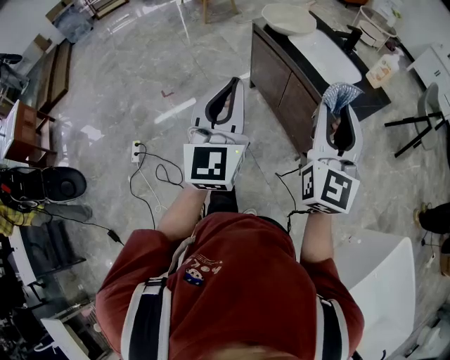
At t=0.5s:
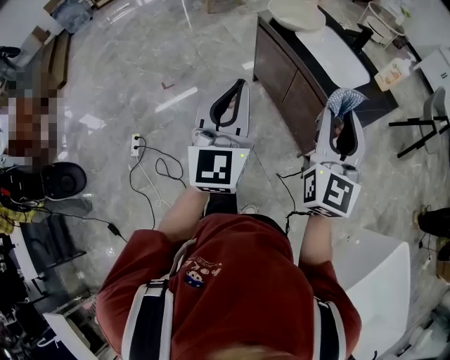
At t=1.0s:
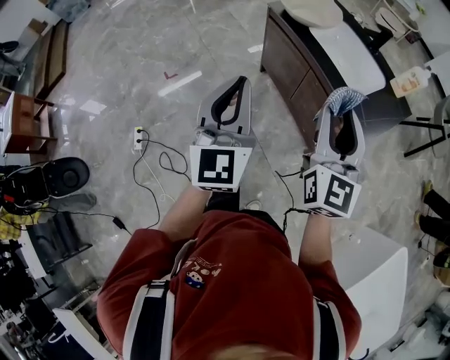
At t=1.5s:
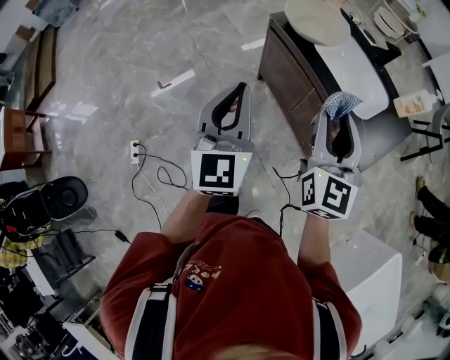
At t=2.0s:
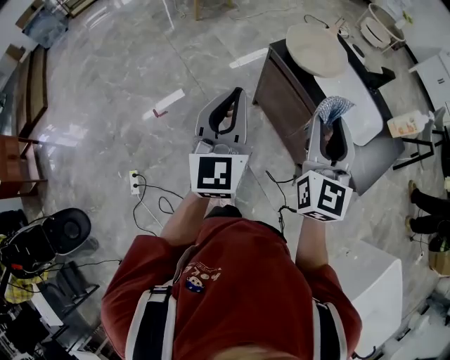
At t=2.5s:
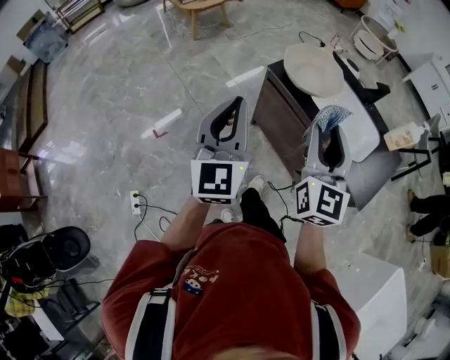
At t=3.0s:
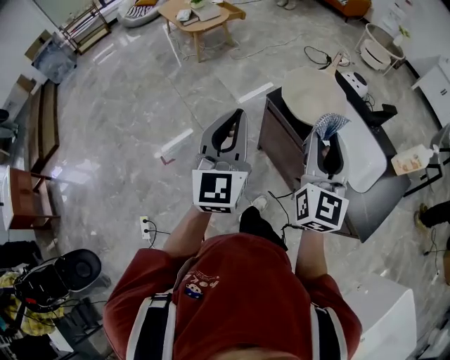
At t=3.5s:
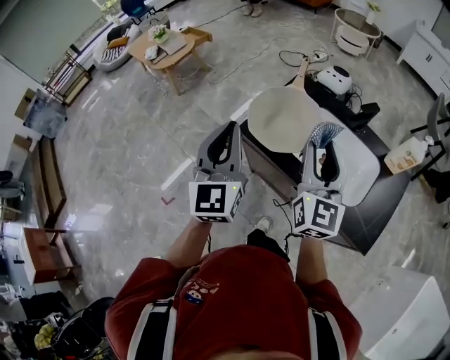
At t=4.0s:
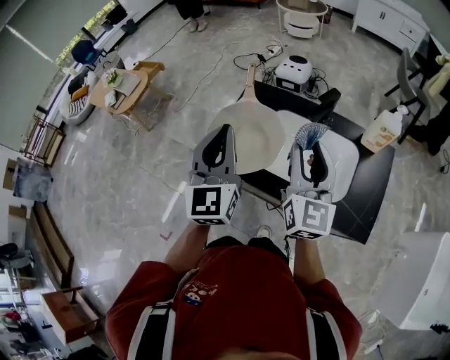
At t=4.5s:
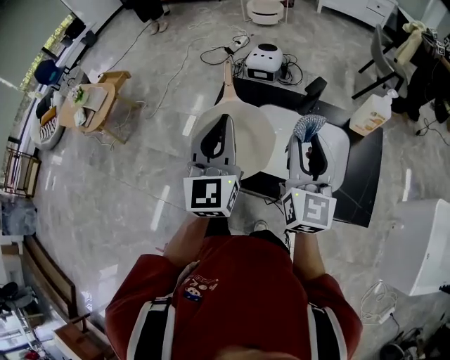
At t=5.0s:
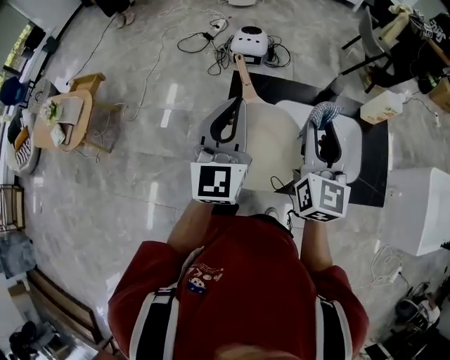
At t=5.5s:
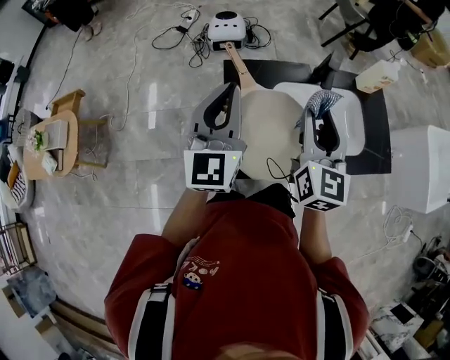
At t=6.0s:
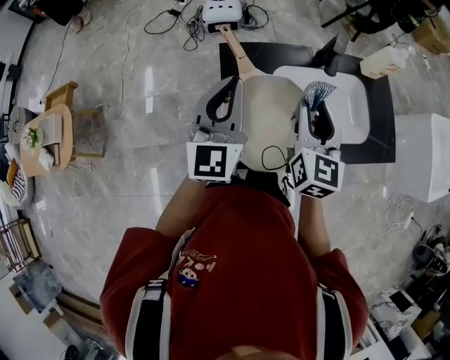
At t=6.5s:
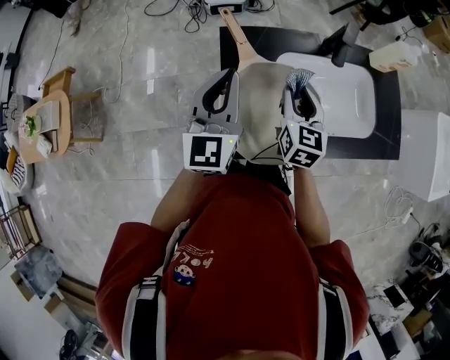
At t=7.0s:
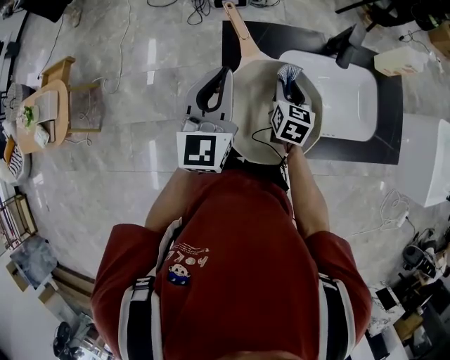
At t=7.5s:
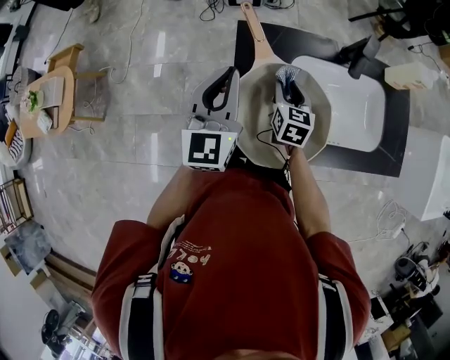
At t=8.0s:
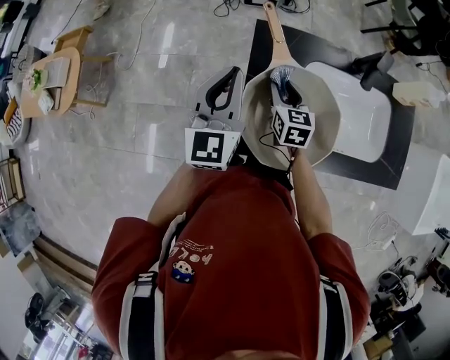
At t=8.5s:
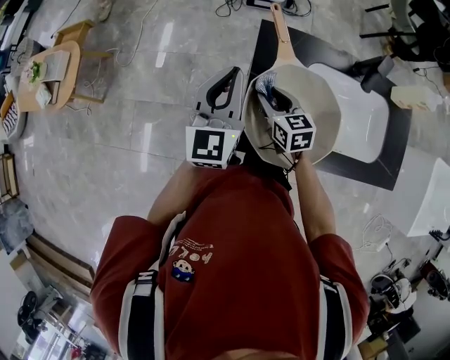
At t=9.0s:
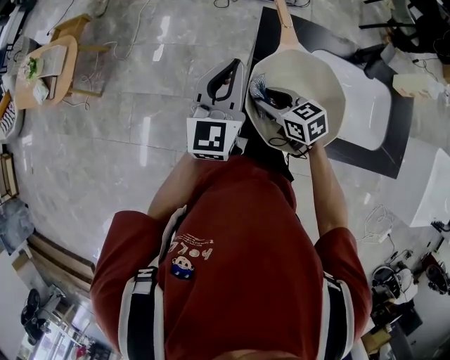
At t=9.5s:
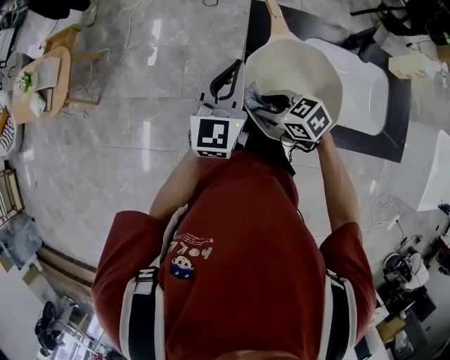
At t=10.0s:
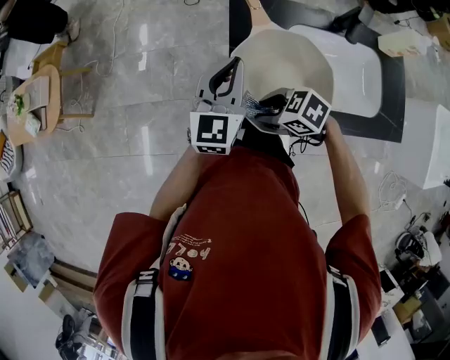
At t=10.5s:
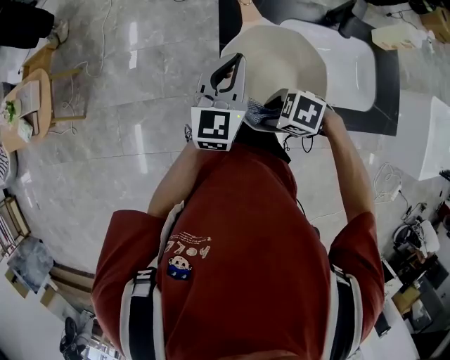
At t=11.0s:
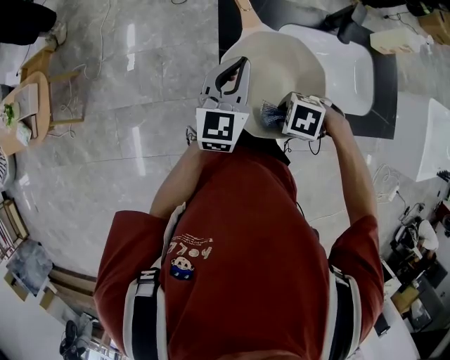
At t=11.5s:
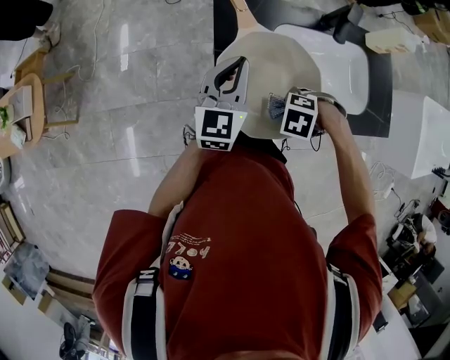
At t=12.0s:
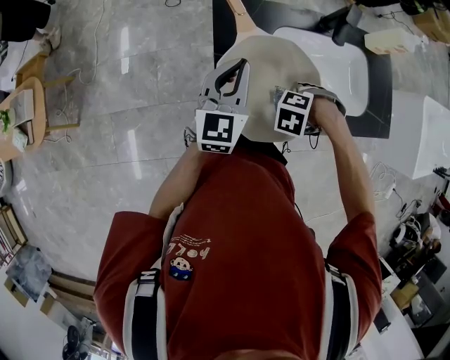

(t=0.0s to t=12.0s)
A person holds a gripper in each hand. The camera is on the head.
t=0.0s - t=2.0s: Both grippers move forward and to the left, some 35 cm.
t=2.0s - t=4.0s: The right gripper moves about 30 cm, and rotates roughly 30 degrees; the left gripper changes place by about 40 cm, and turns by roughly 30 degrees.
t=4.0s - t=6.0s: The right gripper moves roughly 15 cm, and changes its angle by about 40 degrees. The left gripper shifts by about 20 cm, and swivels roughly 40 degrees.
t=6.0s - t=8.0s: The left gripper shifts approximately 10 cm to the left and downward, while the right gripper is displaced downward and to the left by about 25 cm, and changes its angle by some 30 degrees.
t=8.0s - t=10.0s: The left gripper shifts by about 5 cm. Meanwhile the right gripper changes place by approximately 20 cm, and swivels some 60 degrees.
t=10.0s - t=12.0s: The left gripper ends up about 5 cm from where it was; the right gripper ends up approximately 15 cm from where it was, and points its fingers approximately 30 degrees further downward.

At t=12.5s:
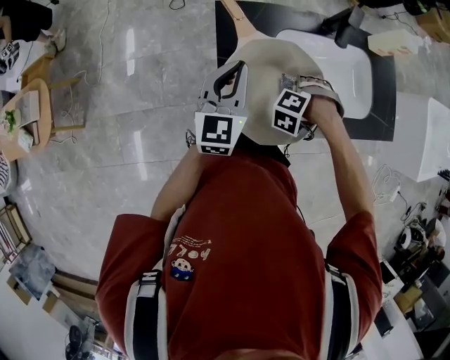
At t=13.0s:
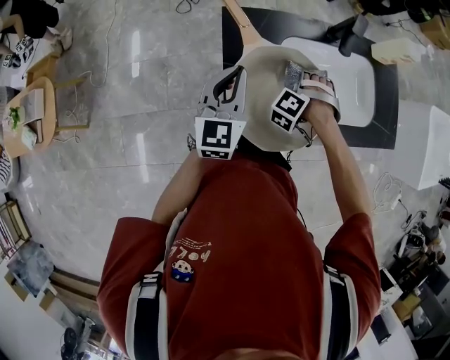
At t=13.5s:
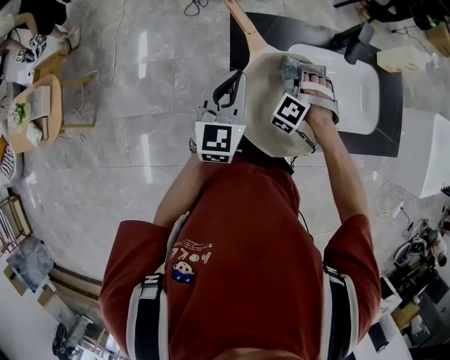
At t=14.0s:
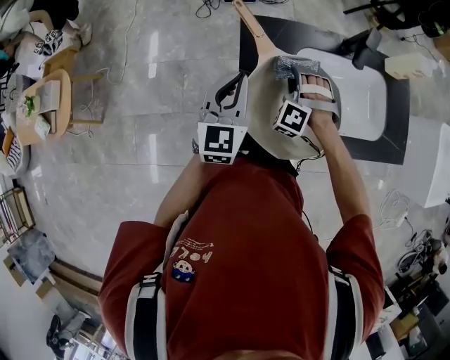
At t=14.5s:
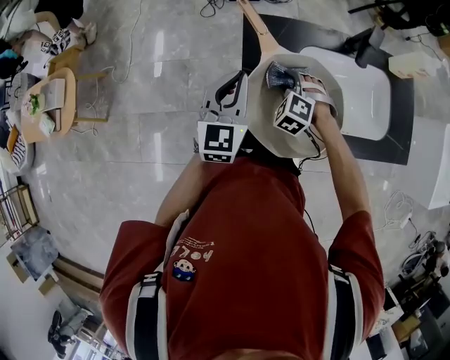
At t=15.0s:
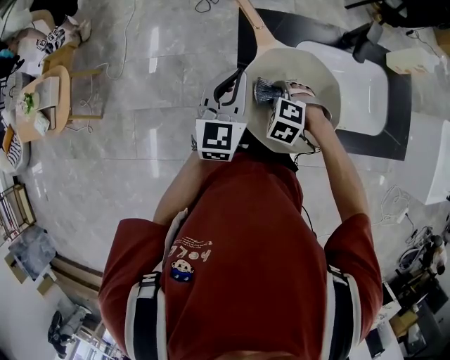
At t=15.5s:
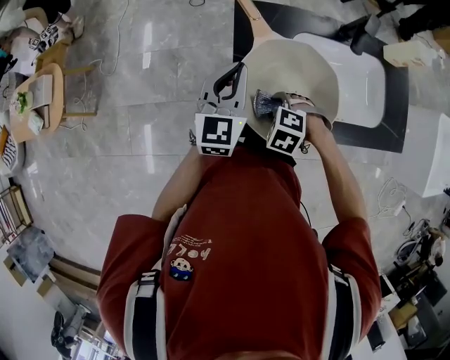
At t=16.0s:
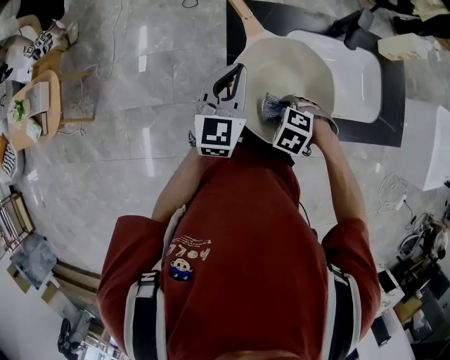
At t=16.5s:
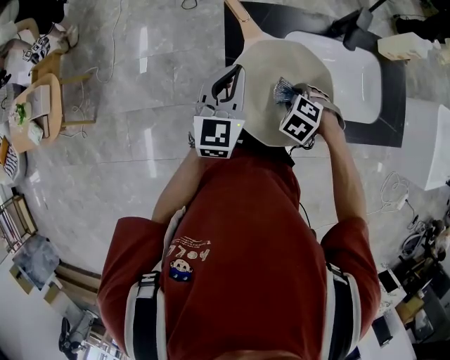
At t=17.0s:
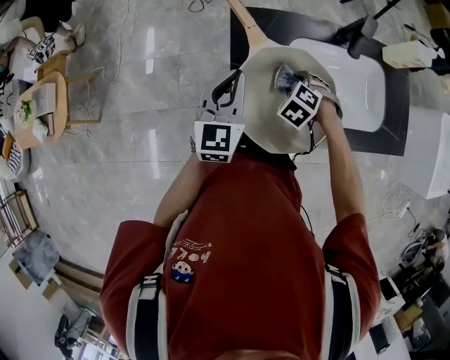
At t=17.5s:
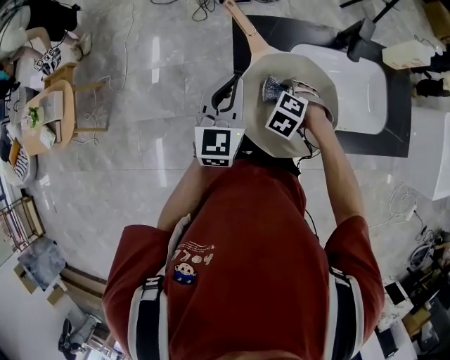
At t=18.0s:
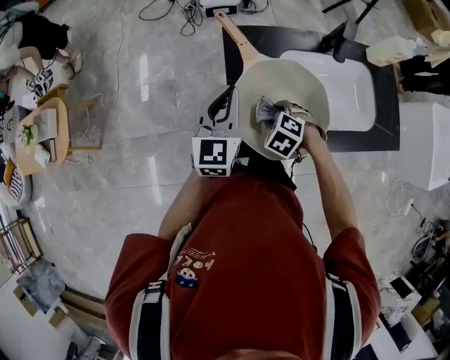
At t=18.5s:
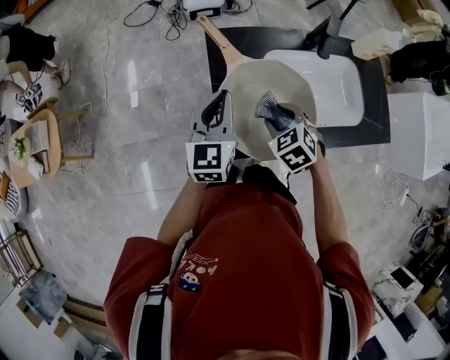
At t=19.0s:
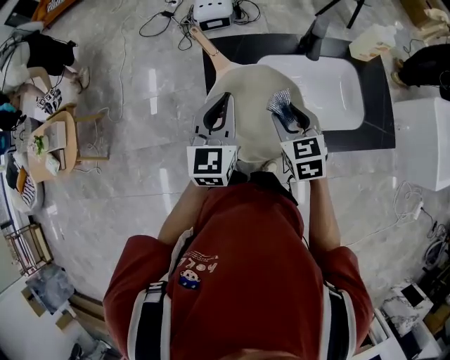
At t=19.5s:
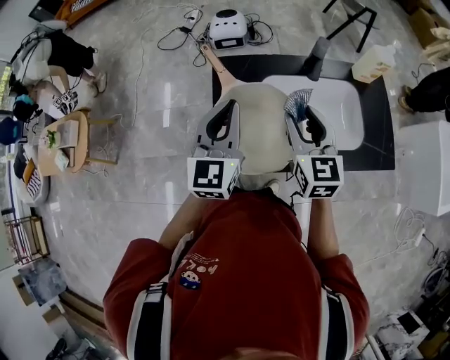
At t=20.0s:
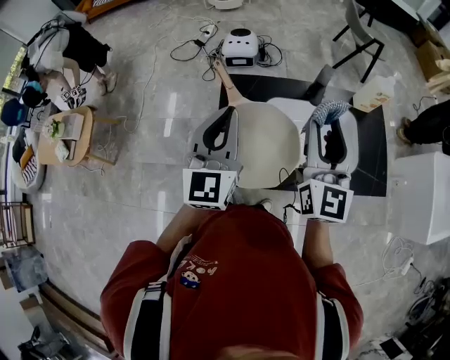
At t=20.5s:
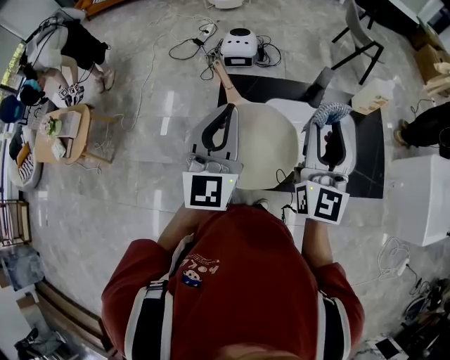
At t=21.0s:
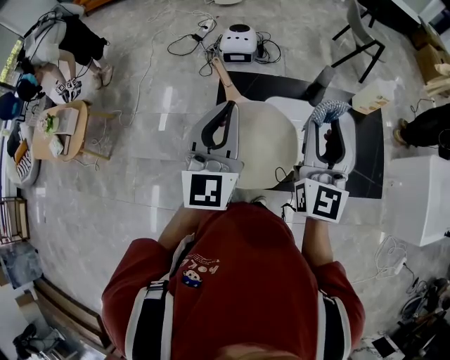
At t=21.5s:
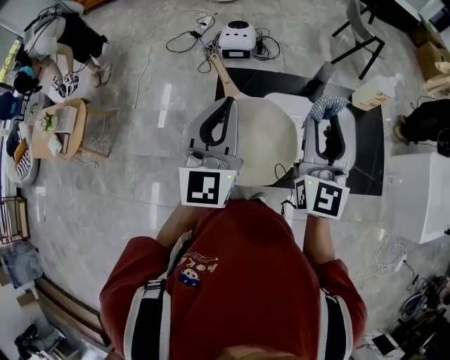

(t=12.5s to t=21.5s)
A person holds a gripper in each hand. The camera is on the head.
t=12.5s - t=14.5s: The right gripper ends up about 15 cm from where it was, and swivels about 40 degrees.
t=17.0s - t=19.5s: The right gripper heads upward, covering some 25 cm, and tips its fingers upward by approximately 60 degrees. The left gripper heads upward, covering some 15 cm.
t=19.5s - t=21.5s: The left gripper goes roughly 5 cm upward. Meanwhile the right gripper travels upward by roughly 10 cm, and turns by approximately 20 degrees.

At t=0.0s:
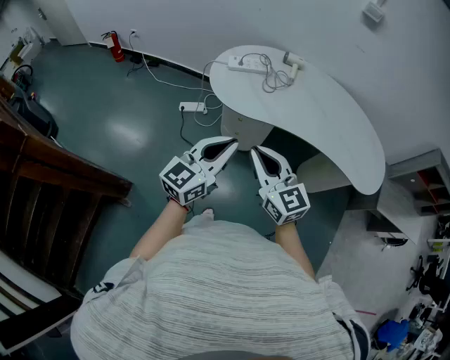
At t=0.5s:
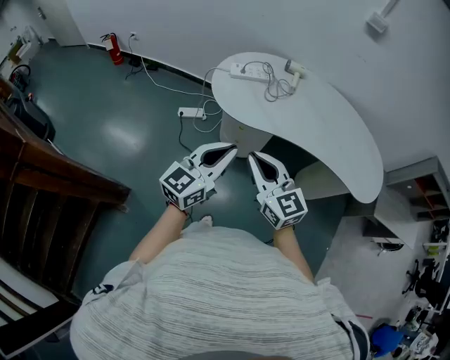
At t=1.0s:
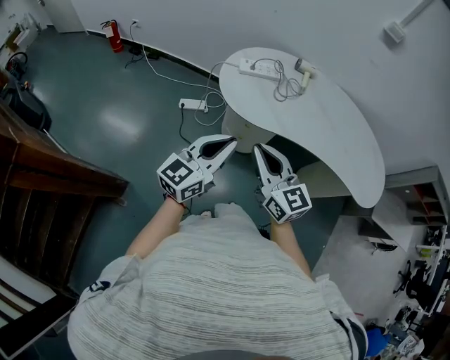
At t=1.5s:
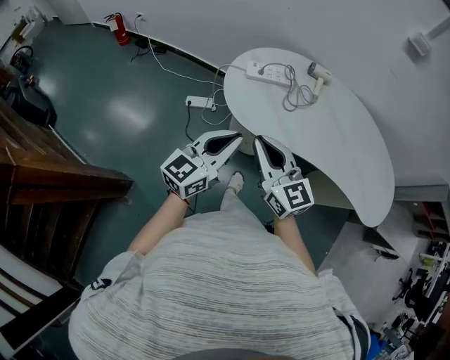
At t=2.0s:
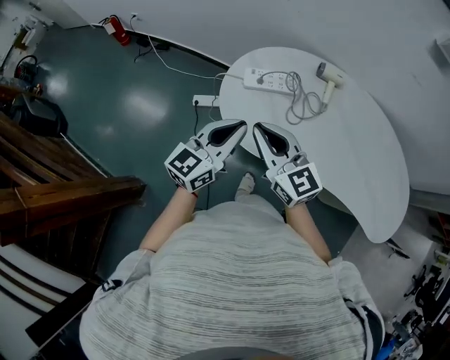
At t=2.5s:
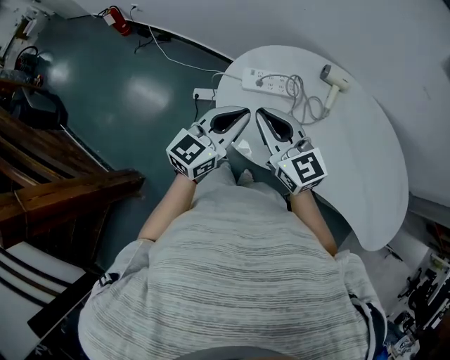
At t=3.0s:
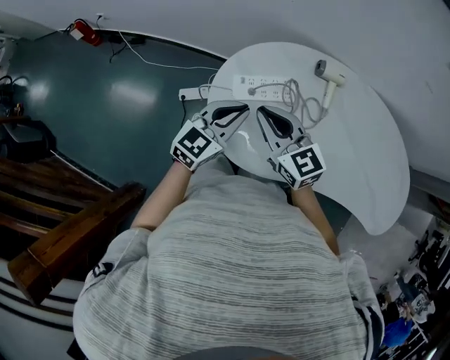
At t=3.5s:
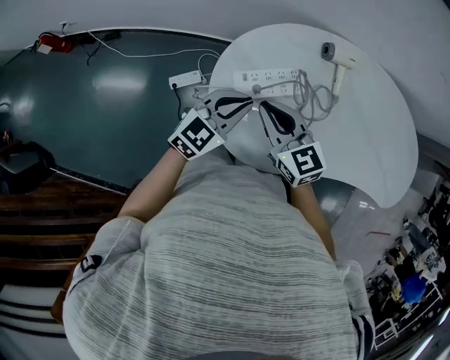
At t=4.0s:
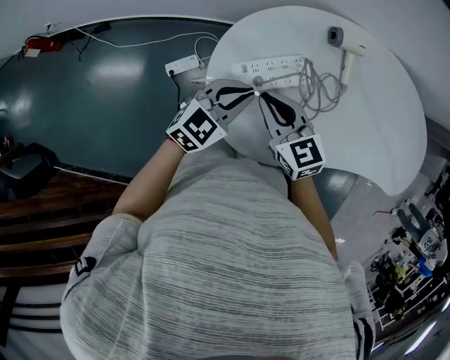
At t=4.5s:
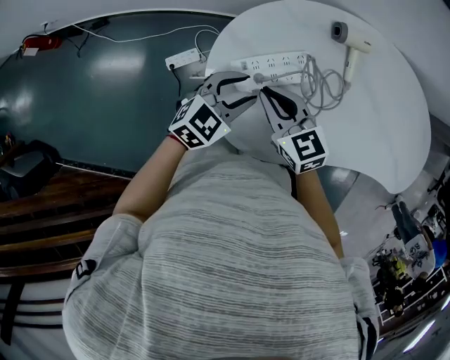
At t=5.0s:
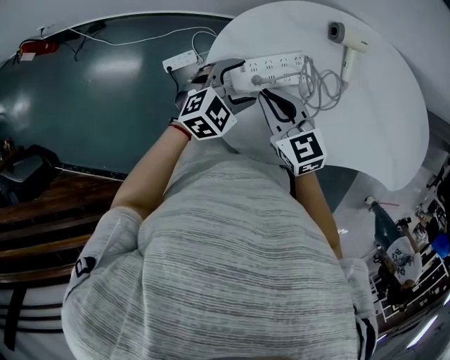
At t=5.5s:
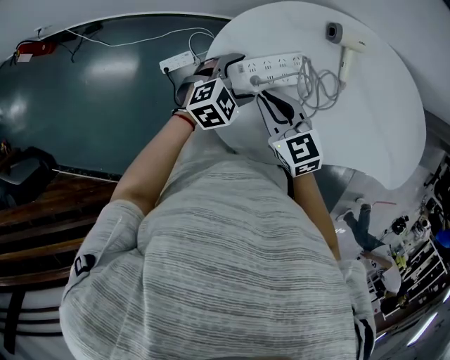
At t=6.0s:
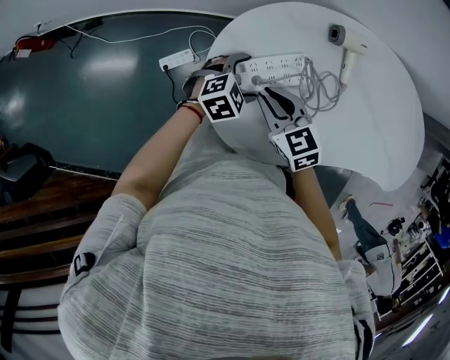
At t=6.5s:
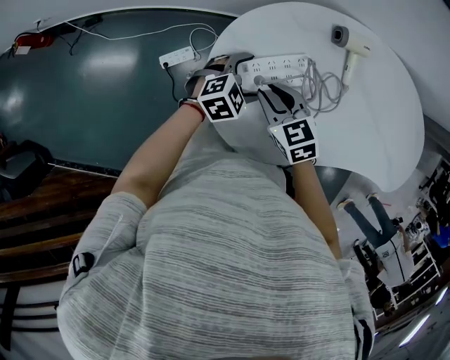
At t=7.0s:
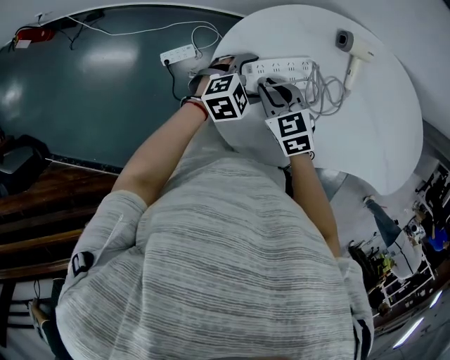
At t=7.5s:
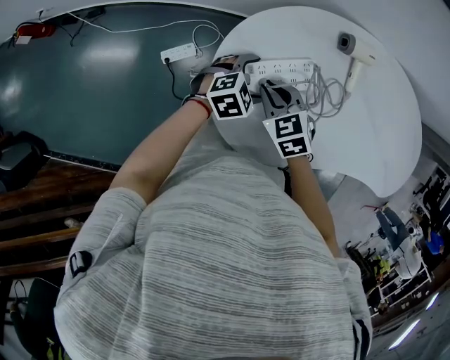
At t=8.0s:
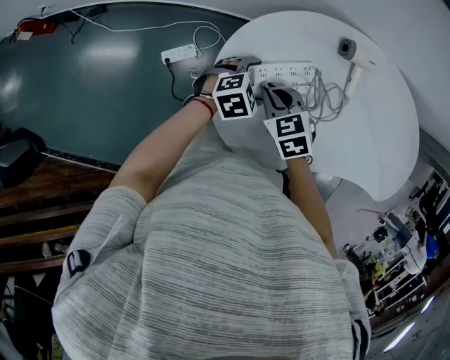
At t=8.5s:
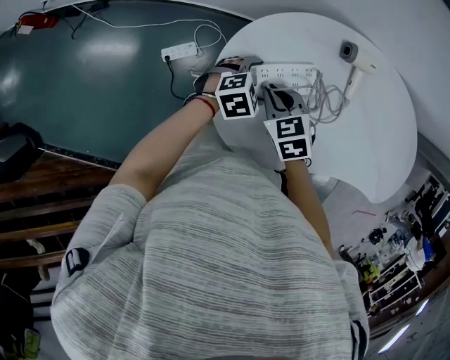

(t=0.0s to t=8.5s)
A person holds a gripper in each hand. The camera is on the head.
t=0.0s - t=2.0s: Both grippers move forward, approximately 30 cm.
t=2.0s - t=4.0s: The left gripper moves about 30 cm, and changes its angle by some 50 degrees, while the right gripper changes place by approximately 25 cm, and turns by approximately 30 degrees.
t=4.0s - t=6.5s: The left gripper shifts roughly 10 cm downward, rotates approximately 20 degrees, and opens up. The right gripper moves downward, about 5 cm.
t=6.5s - t=8.5s: There are only small adjustments of the grippers.
